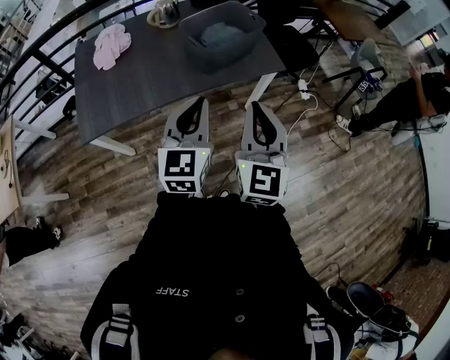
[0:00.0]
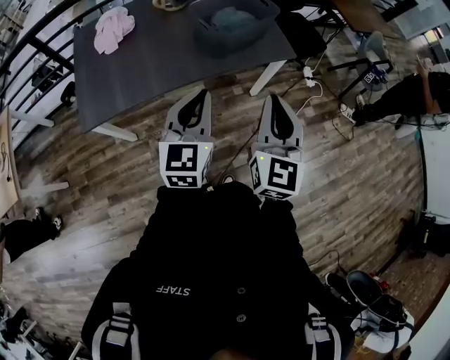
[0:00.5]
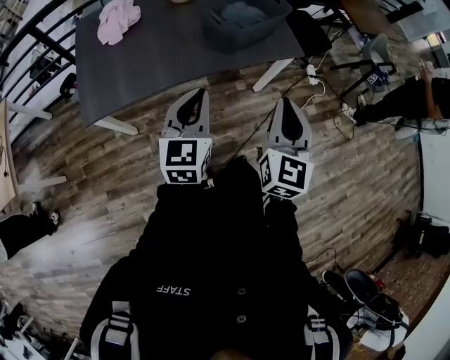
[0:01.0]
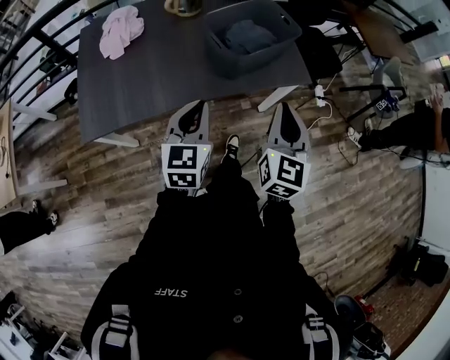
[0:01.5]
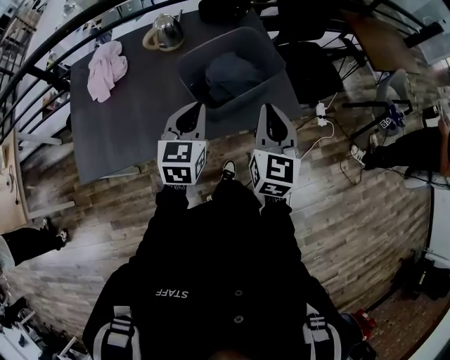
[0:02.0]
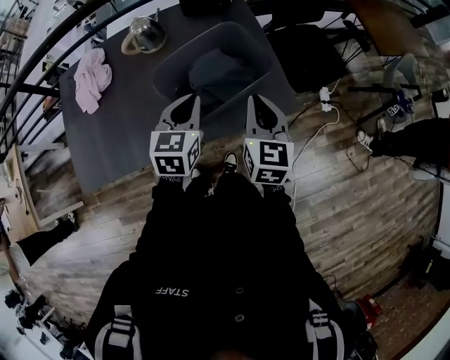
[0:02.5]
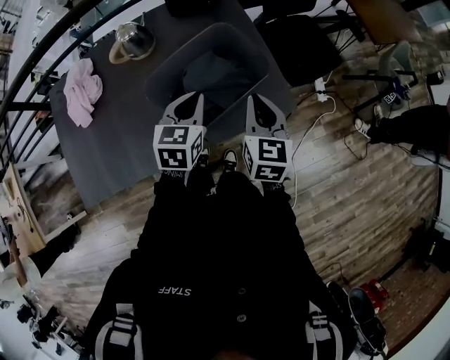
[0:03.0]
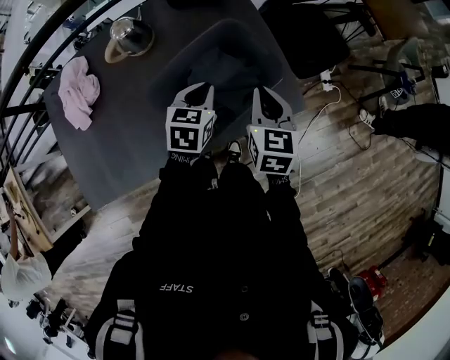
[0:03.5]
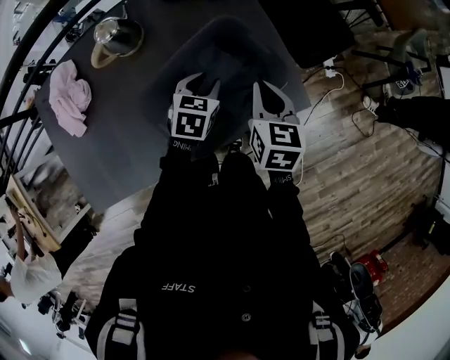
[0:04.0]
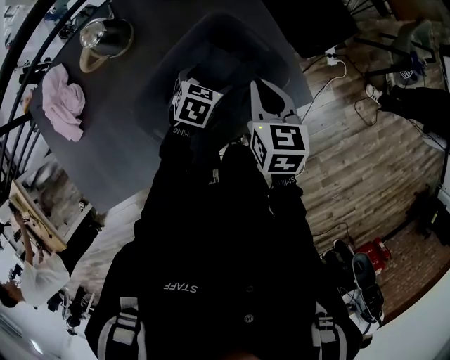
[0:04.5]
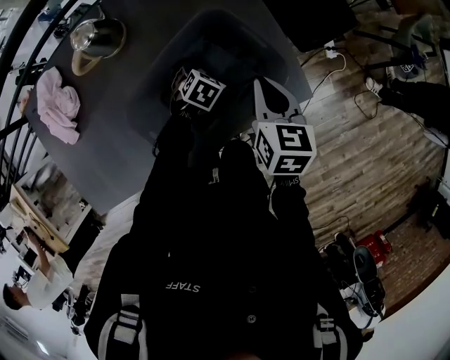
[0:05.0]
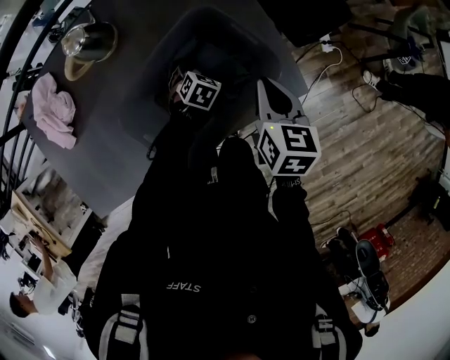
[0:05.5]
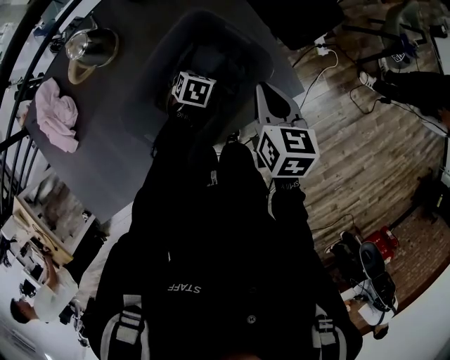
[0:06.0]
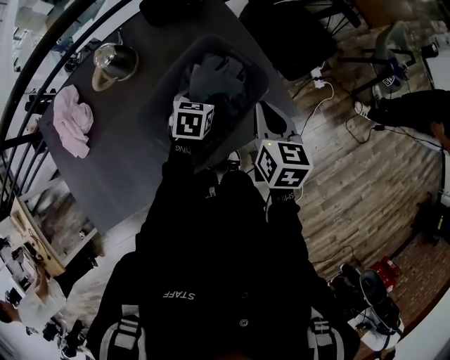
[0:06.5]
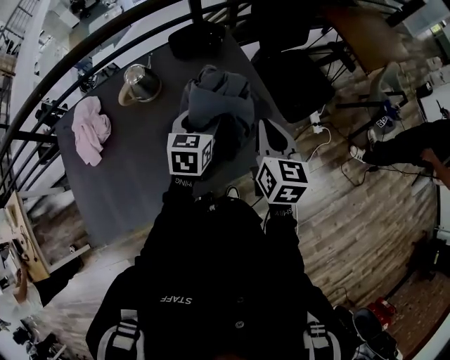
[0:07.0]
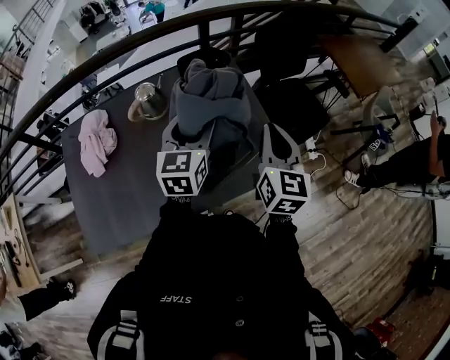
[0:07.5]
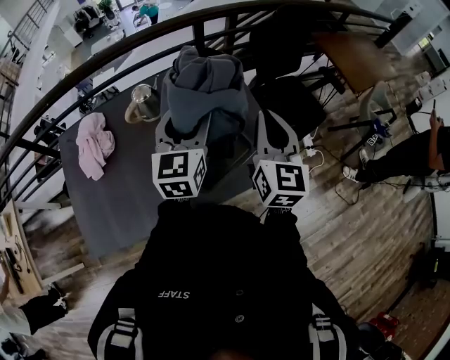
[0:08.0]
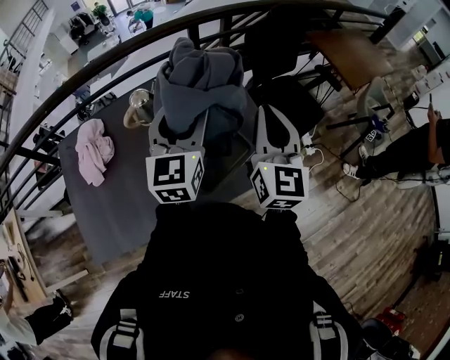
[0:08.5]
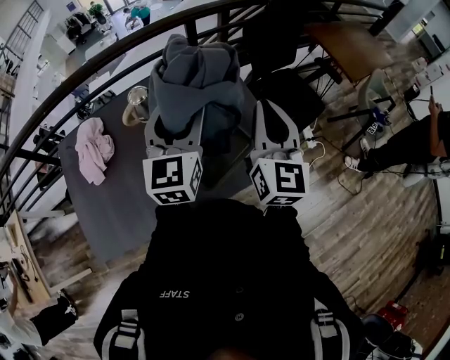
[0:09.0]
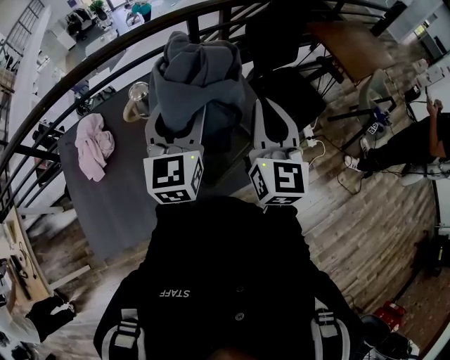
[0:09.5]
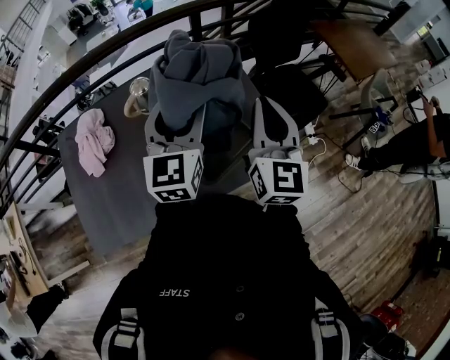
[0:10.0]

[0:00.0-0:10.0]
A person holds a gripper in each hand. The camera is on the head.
0:00.0 to 0:02.0: The two grippers go some 35 cm forward.
0:02.0 to 0:04.0: Both grippers travel together forward and downward, approximately 30 cm. The right gripper rotates approximately 30 degrees; the left gripper turns by approximately 30 degrees.
0:04.0 to 0:06.0: The right gripper changes place by roughly 5 cm. The left gripper travels downward by about 15 cm, and opens, then closes once more.
0:06.0 to 0:08.0: The left gripper shifts roughly 50 cm upward, and tilts its fingers roughly 60 degrees upward, while the right gripper heads upward, covering approximately 25 cm, and points its fingers roughly 30 degrees further upward.
0:08.0 to 0:10.0: The grippers stay close to where they were, moving slightly.

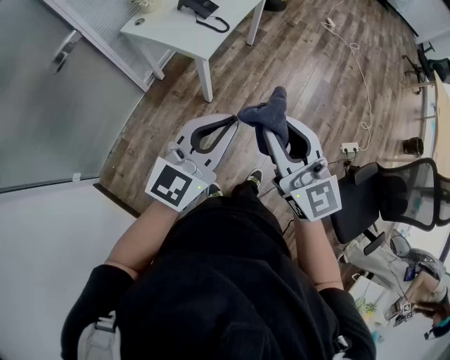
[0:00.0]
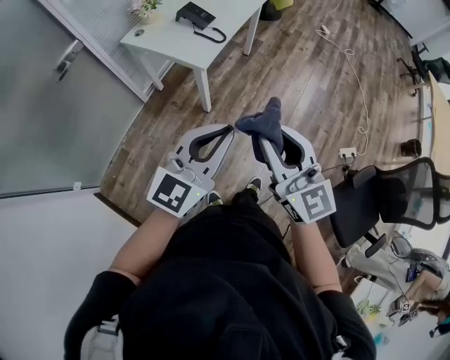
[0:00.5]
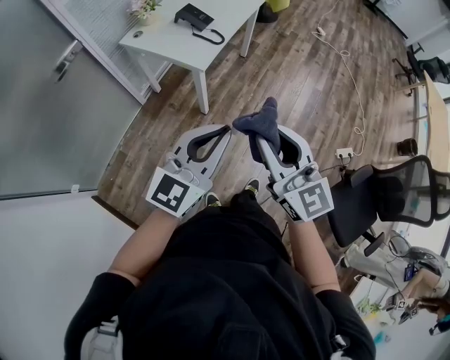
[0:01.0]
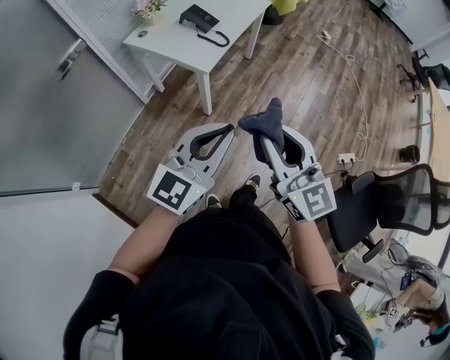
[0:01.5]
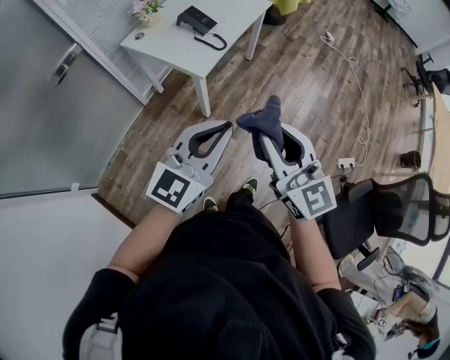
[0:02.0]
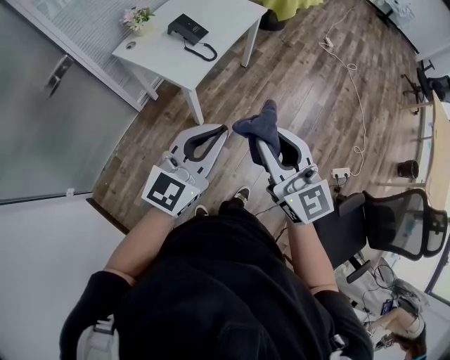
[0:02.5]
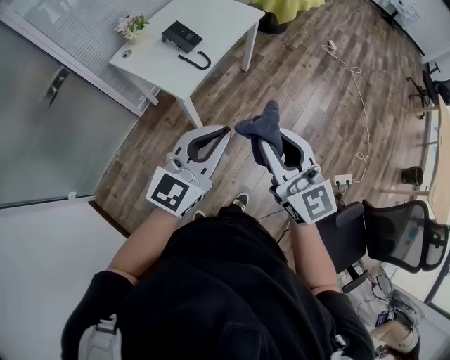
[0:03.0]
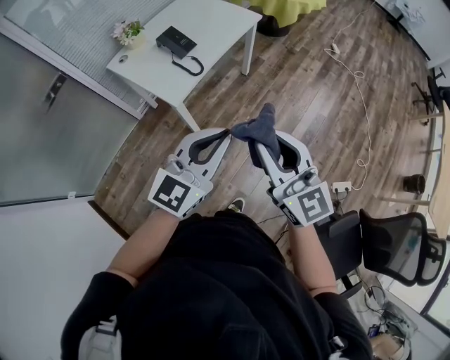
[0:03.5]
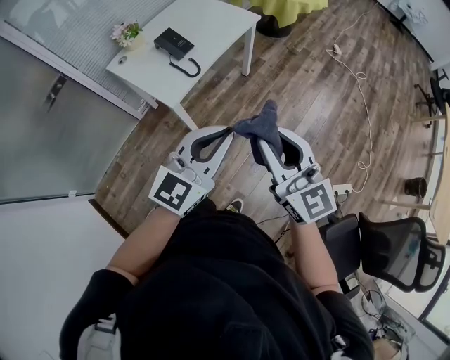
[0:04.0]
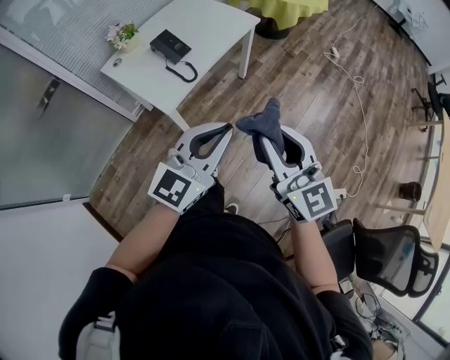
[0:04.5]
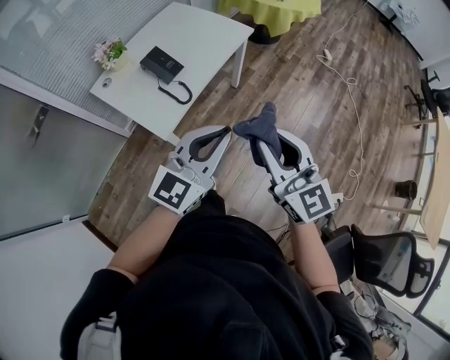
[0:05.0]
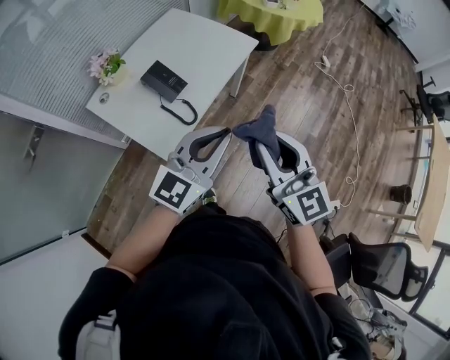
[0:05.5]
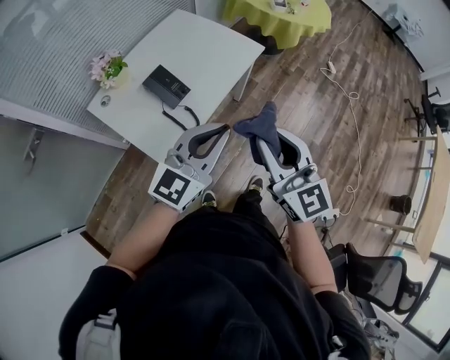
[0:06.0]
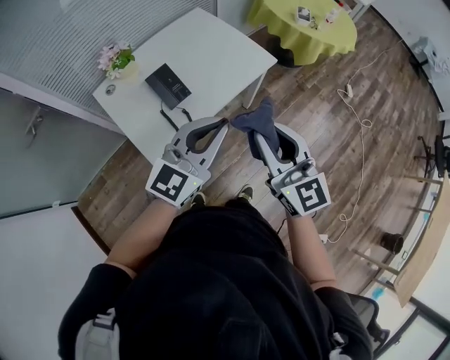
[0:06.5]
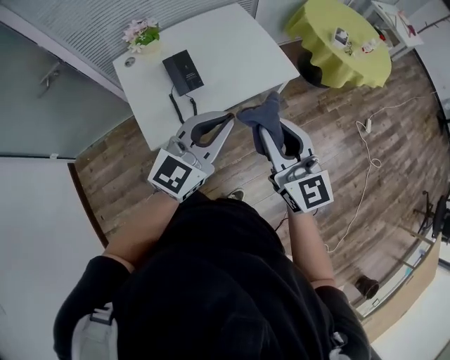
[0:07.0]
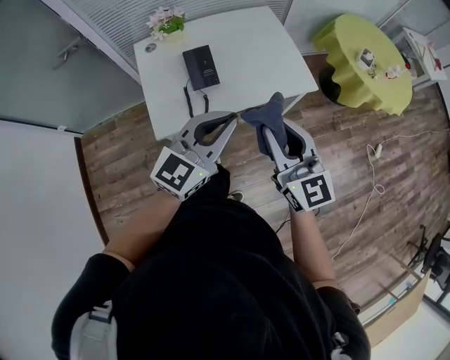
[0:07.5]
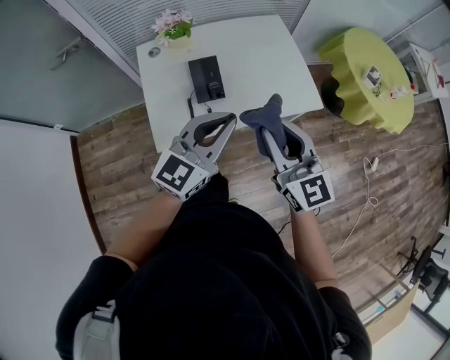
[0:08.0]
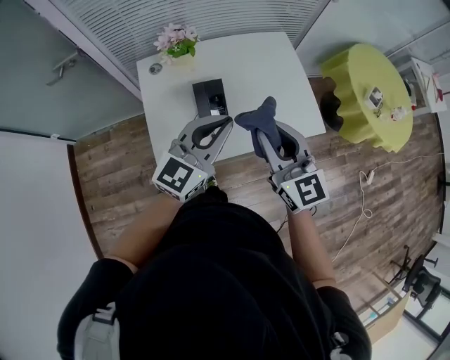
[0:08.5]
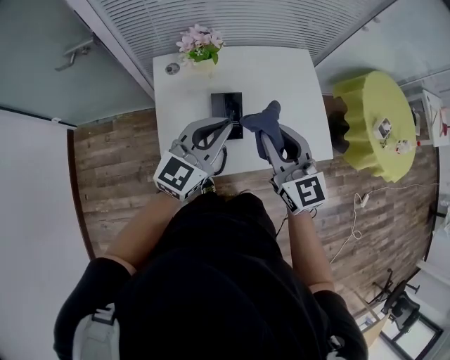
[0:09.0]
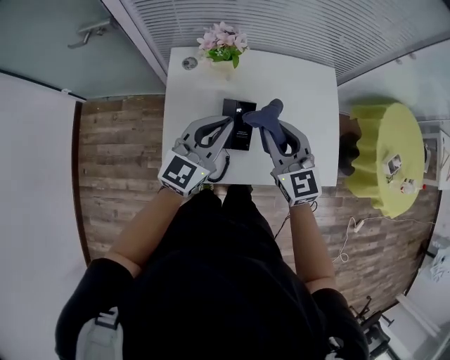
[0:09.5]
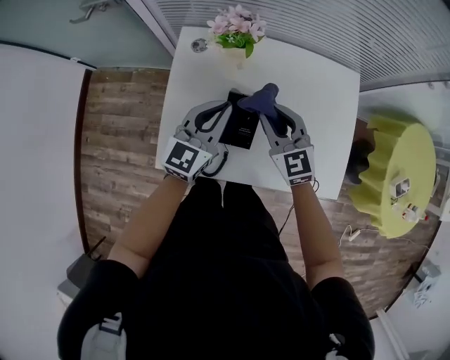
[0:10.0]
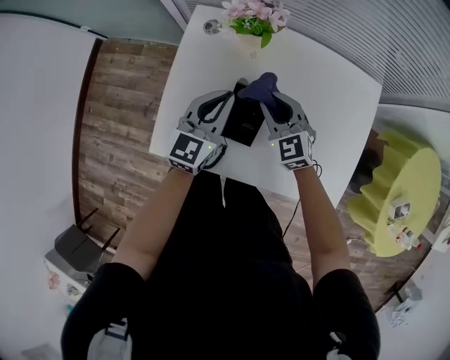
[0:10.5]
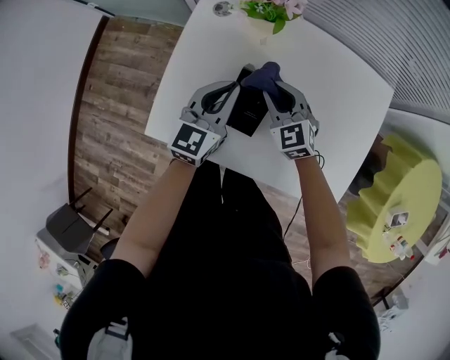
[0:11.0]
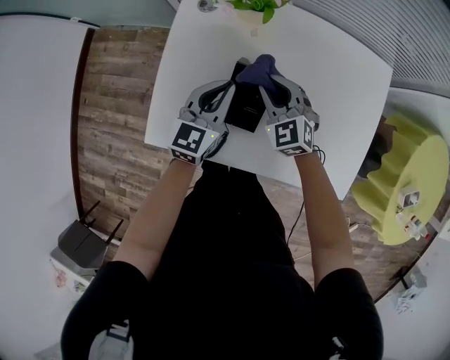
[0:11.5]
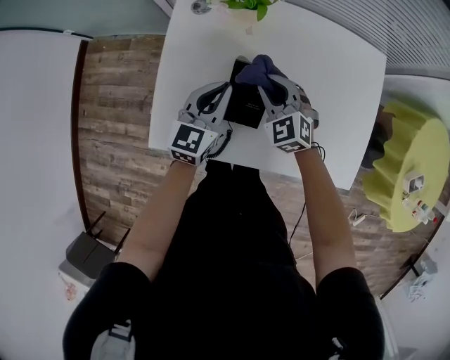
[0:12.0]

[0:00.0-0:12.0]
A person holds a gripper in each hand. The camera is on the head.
0:00.0 to 0:02.0: The left gripper changes place by some 5 cm; the right gripper is displaced forward by approximately 5 cm.
0:02.0 to 0:04.0: Both grippers travel together to the right and forward, roughly 25 cm.
0:04.0 to 0:06.0: Both grippers move forward, roughly 30 cm.
0:06.0 to 0:08.0: The right gripper changes place by some 20 cm, and swivels some 40 degrees. Meanwhile the left gripper changes place by roughly 15 cm, and swivels about 40 degrees.
0:08.0 to 0:10.0: The right gripper changes place by approximately 40 cm, and swivels approximately 30 degrees, while the left gripper ends up roughly 35 cm from where it was, and turns by approximately 30 degrees.
0:10.0 to 0:12.0: Both grippers travel together downward, roughly 15 cm. The right gripper swivels approximately 20 degrees.

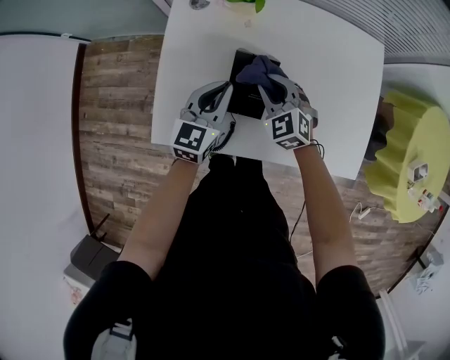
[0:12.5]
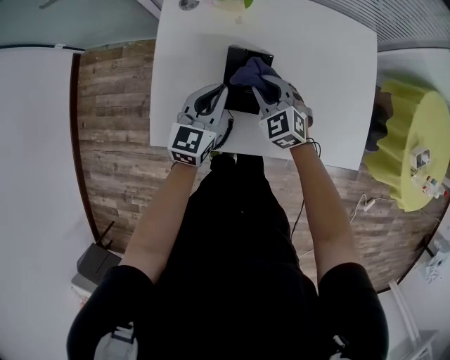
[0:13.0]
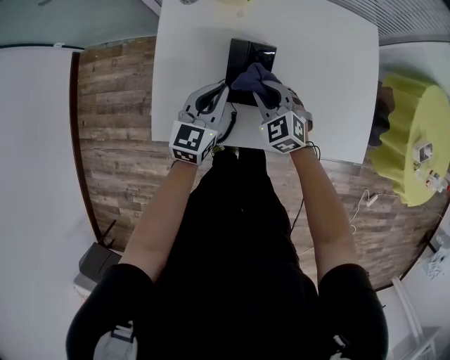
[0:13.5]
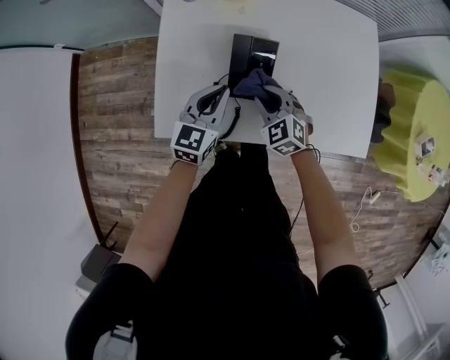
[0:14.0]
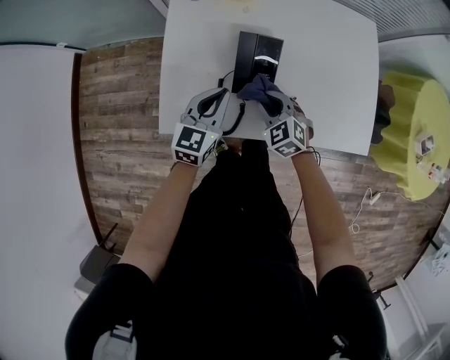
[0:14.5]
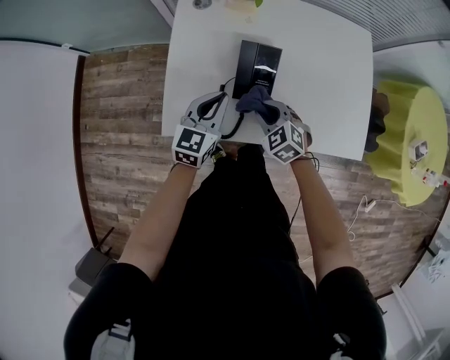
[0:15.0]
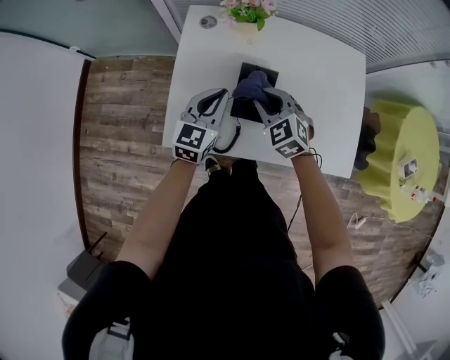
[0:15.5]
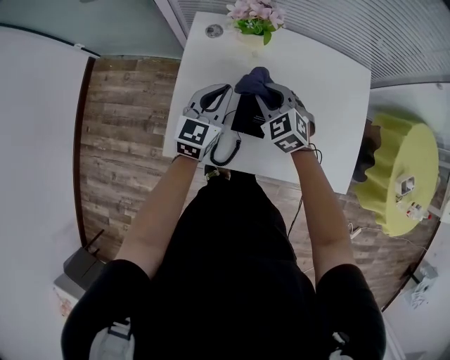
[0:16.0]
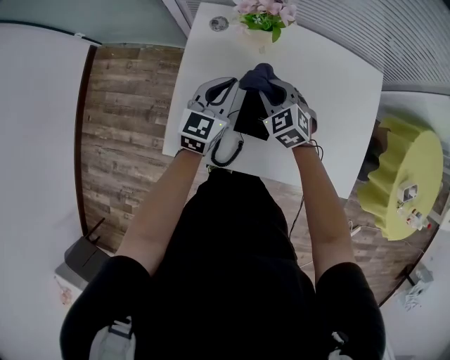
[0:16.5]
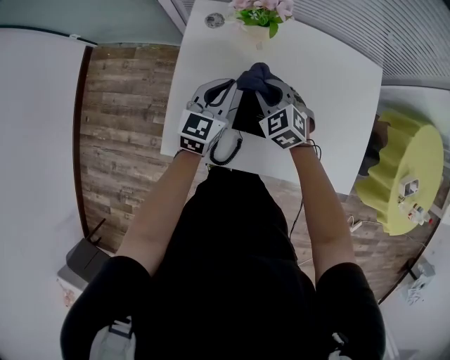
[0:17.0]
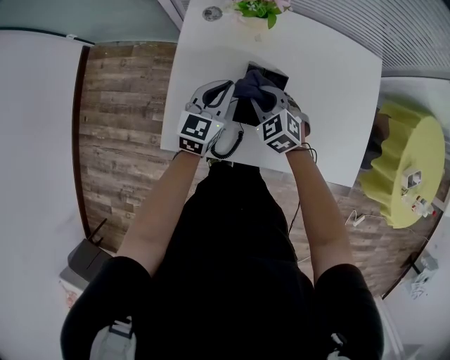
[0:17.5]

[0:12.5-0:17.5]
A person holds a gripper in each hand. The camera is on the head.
0:12.5 to 0:15.0: The left gripper shifts roughly 5 cm backward. Meanwhile the right gripper is displaced backward by some 15 cm.
0:15.0 to 0:17.5: Both grippers move forward, some 10 cm.
